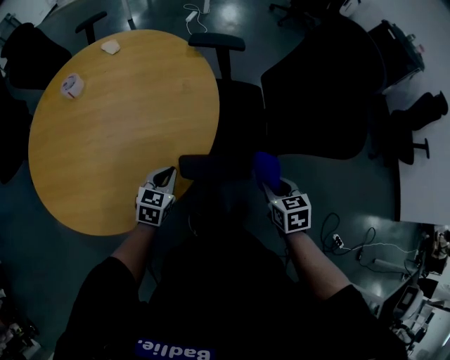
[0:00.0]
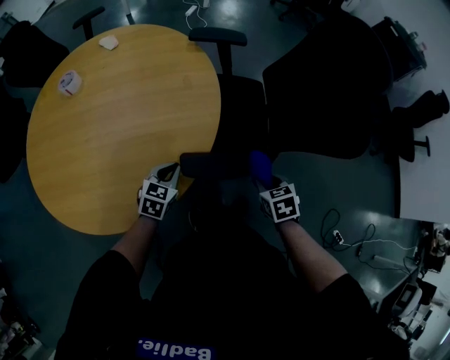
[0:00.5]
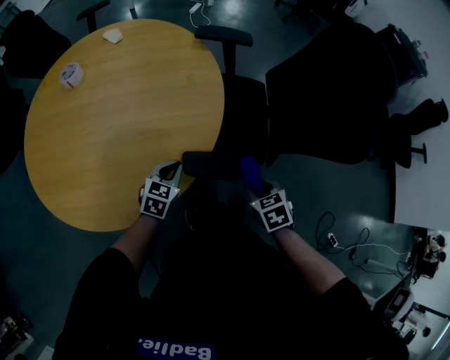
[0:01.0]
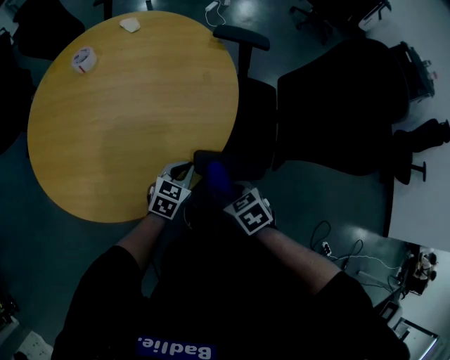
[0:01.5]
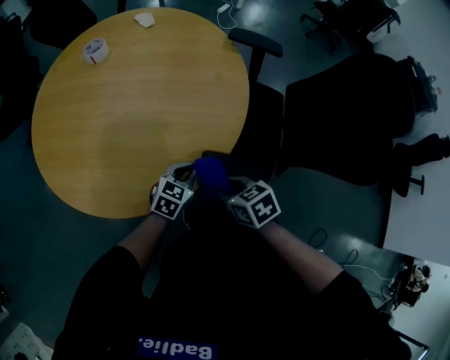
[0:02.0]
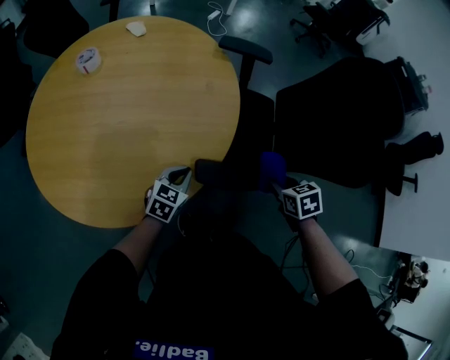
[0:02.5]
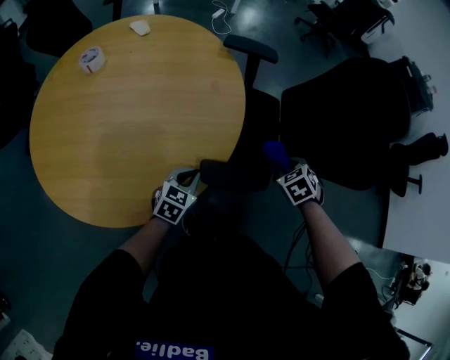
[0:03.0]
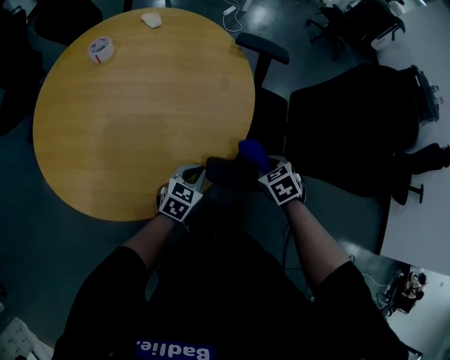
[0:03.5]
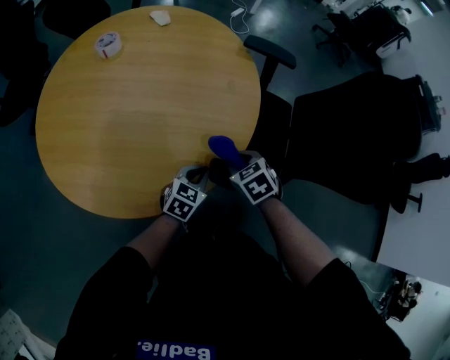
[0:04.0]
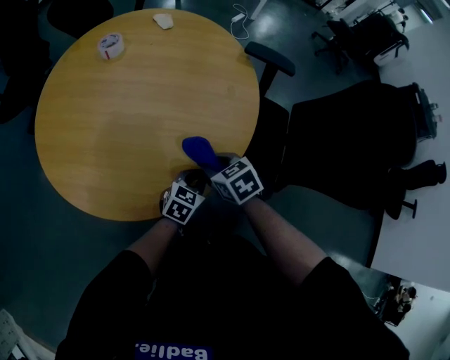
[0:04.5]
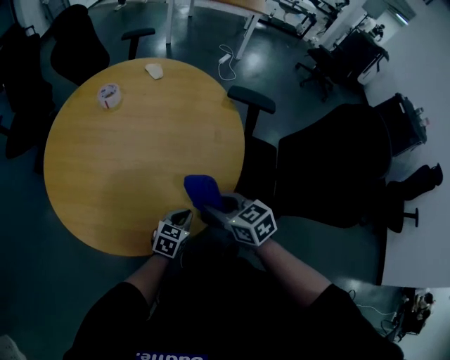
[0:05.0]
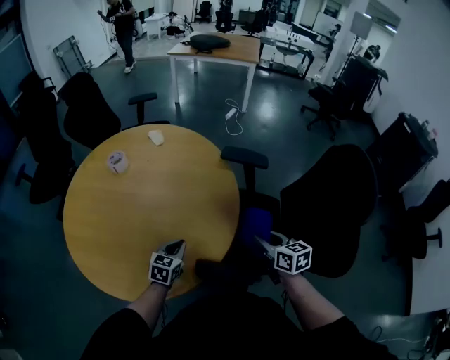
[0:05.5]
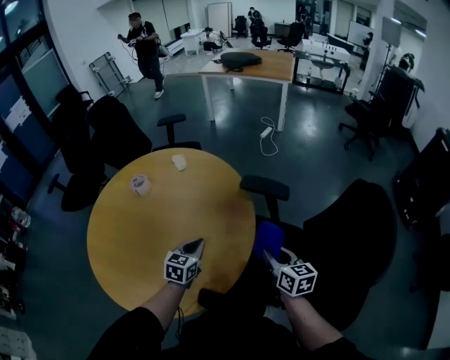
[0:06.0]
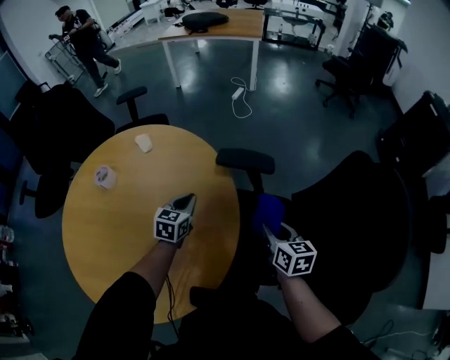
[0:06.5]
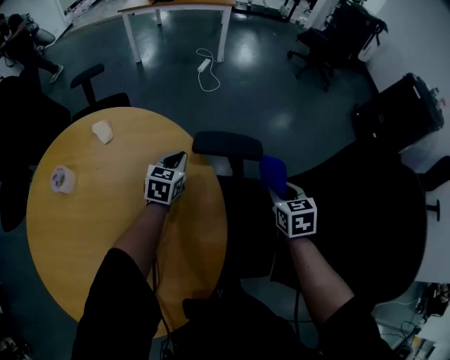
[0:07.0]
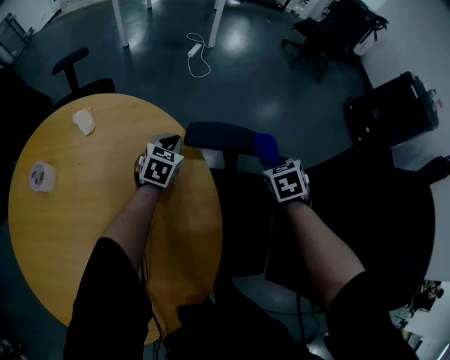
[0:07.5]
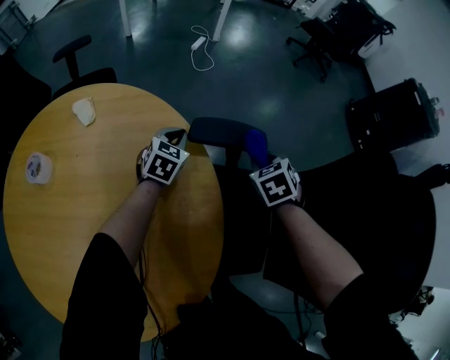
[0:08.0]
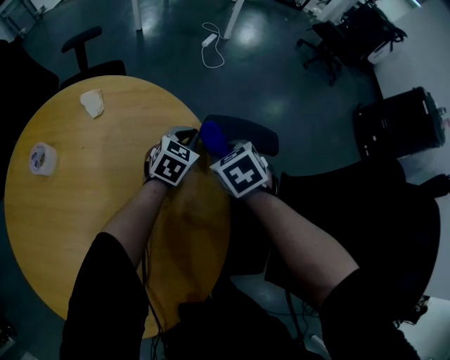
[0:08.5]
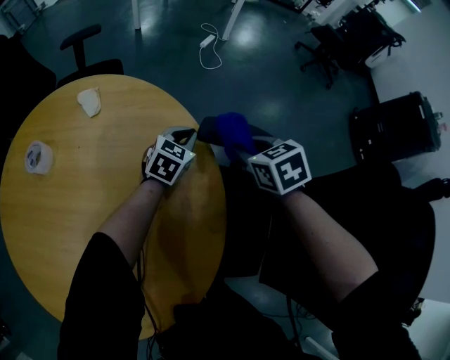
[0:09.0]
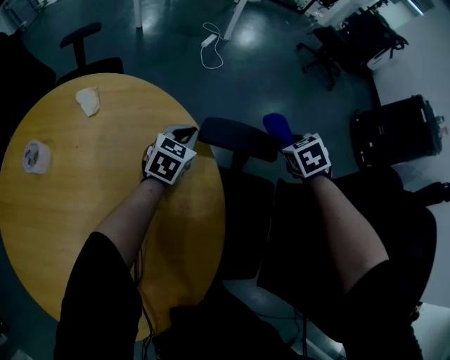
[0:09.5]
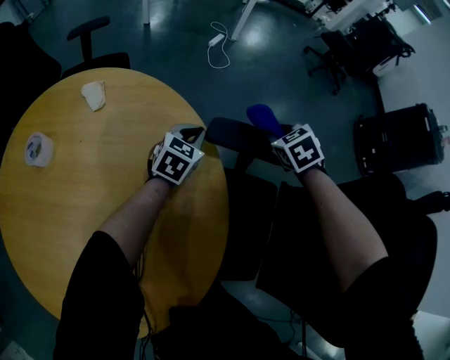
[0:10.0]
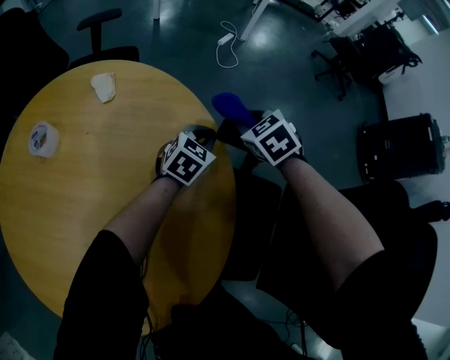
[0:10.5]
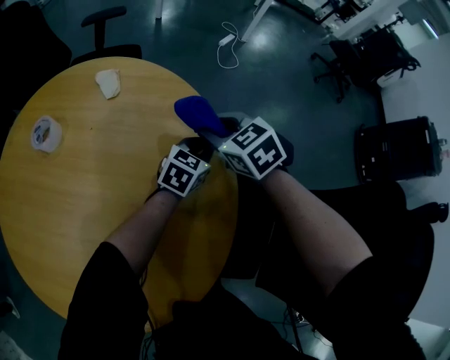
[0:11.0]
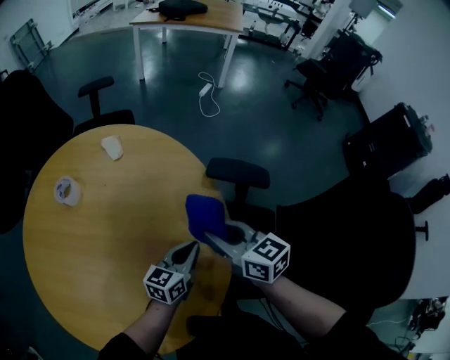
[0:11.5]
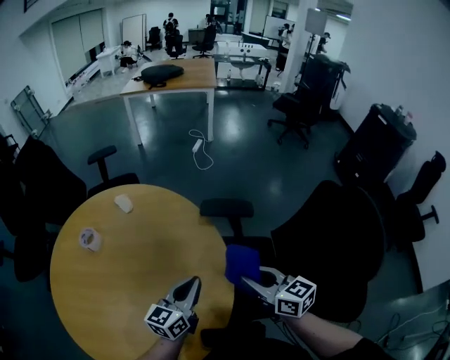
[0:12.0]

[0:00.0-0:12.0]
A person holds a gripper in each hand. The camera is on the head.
0:00.0 to 0:02.0: The right gripper travels to the left by approximately 20 cm, and turns by some 30 degrees.
0:02.0 to 0:04.0: The right gripper turns by about 20 degrees.
0:04.0 to 0:06.0: The right gripper heads to the right, forward and upward, covering about 30 cm, and points its fingers approximately 40 degrees further upward. The left gripper travels forward and upward by approximately 25 cm, and turns by roughly 20 degrees.
0:06.0 to 0:08.0: The right gripper shifts by about 30 cm, and tips its fingers downward by about 40 degrees. The left gripper shifts by some 40 cm, and rotates approximately 20 degrees.
0:08.0 to 0:10.0: The right gripper moves left and right over roughly 20 cm, changing direction 2 times.
0:10.0 to 0:12.0: Both grippers travel together backward and upward, roughly 40 cm. The right gripper tilts its fingers about 40 degrees upward; the left gripper changes its angle by some 30 degrees.

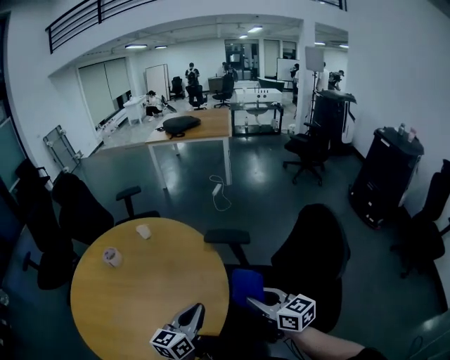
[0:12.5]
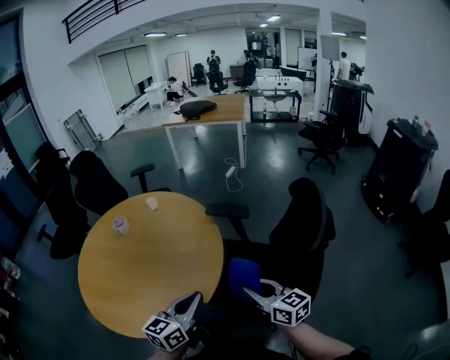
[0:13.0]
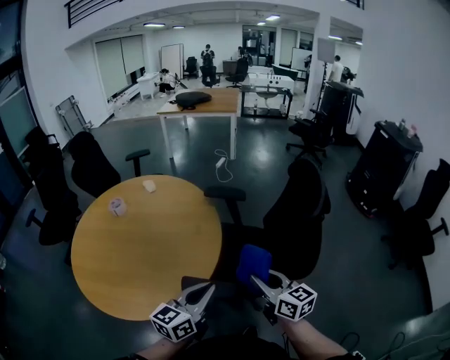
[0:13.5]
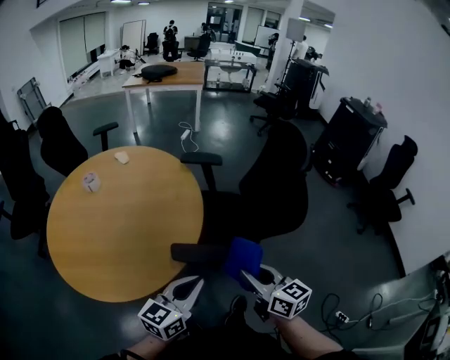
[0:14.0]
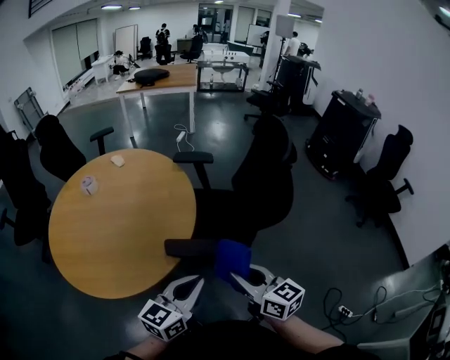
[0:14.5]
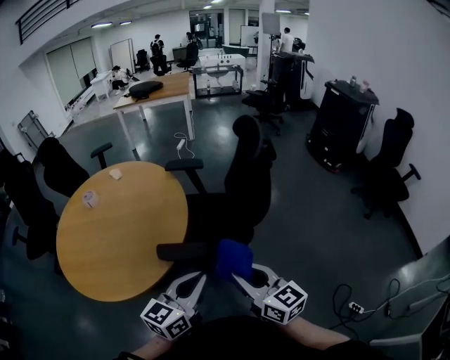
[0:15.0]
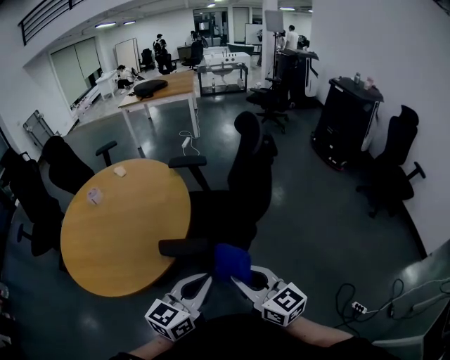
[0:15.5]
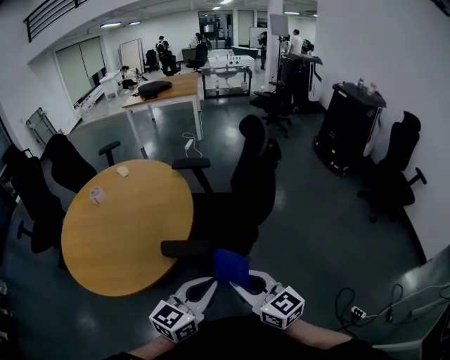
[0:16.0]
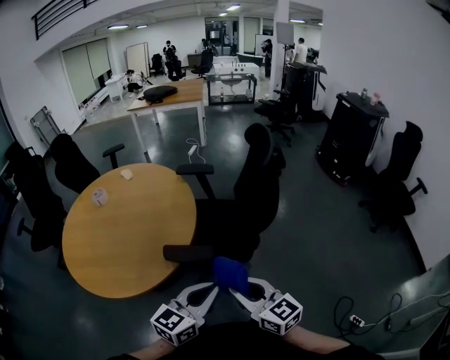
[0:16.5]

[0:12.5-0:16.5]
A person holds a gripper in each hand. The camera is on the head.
0:12.5 to 0:14.5: Both grippers move backward, about 30 cm.
0:14.5 to 0:16.5: The left gripper moves to the right, some 10 cm. The right gripper is displaced to the right by about 5 cm.

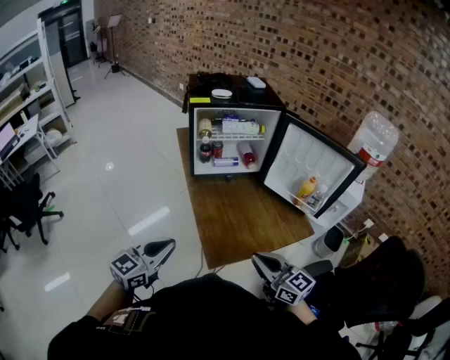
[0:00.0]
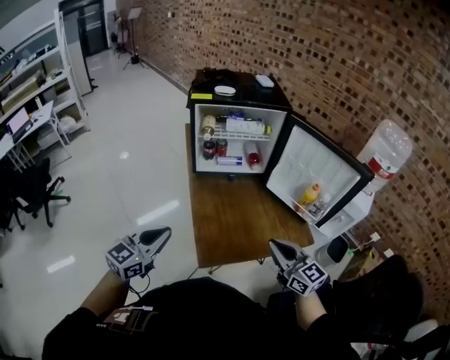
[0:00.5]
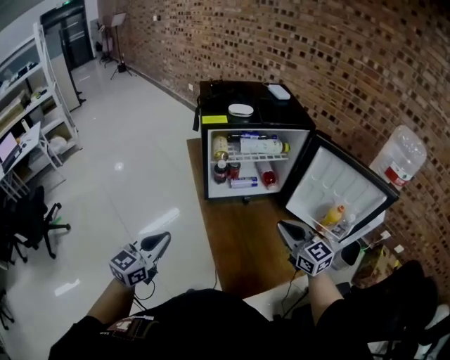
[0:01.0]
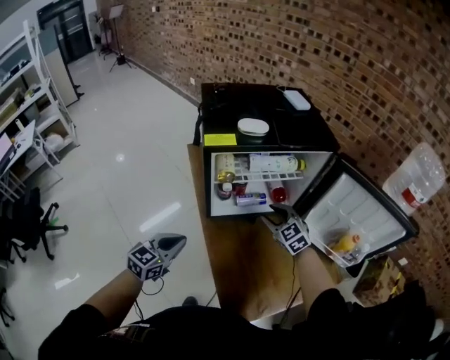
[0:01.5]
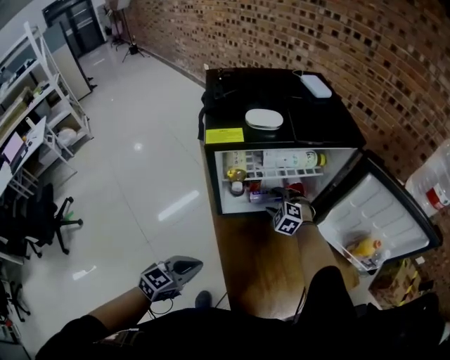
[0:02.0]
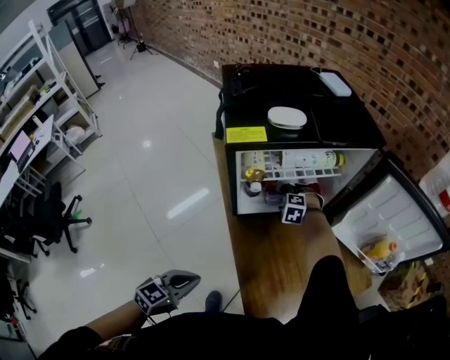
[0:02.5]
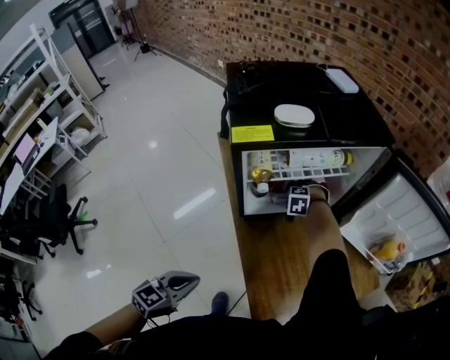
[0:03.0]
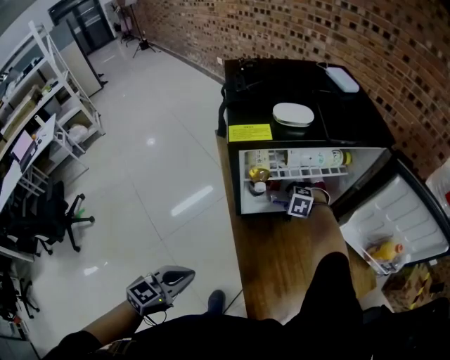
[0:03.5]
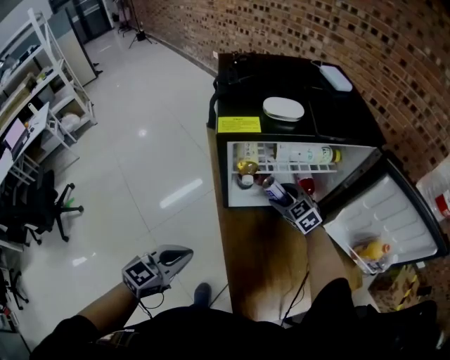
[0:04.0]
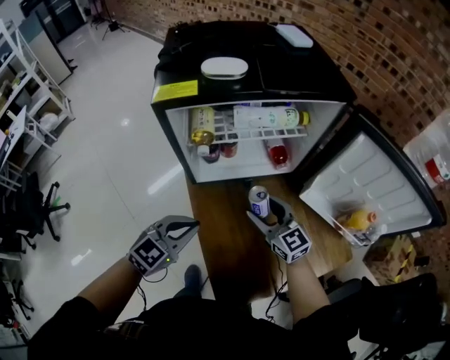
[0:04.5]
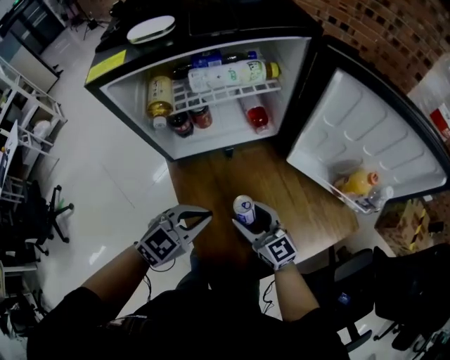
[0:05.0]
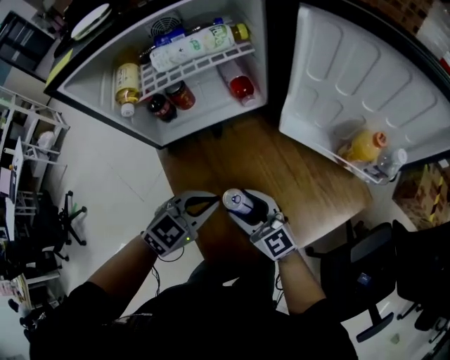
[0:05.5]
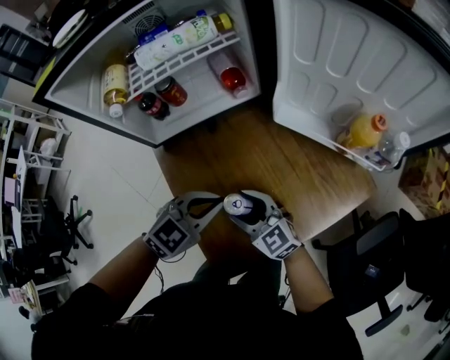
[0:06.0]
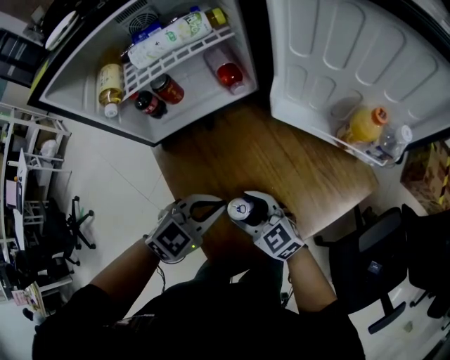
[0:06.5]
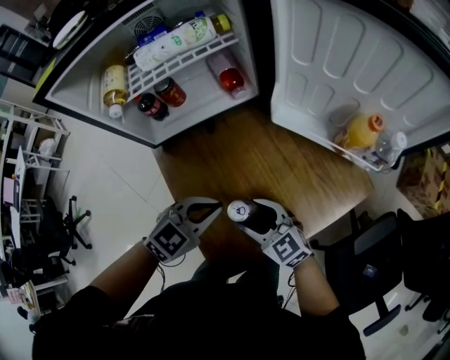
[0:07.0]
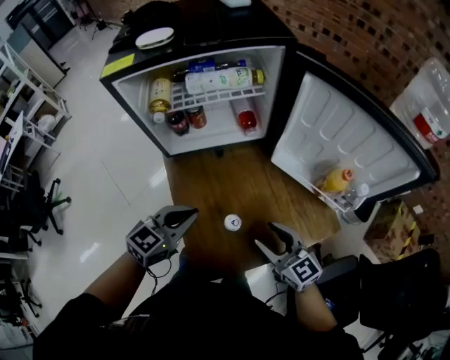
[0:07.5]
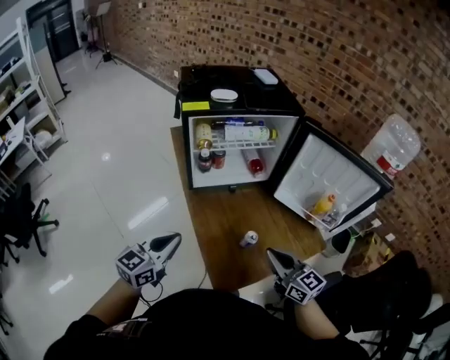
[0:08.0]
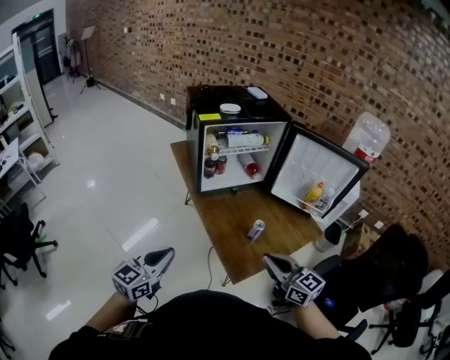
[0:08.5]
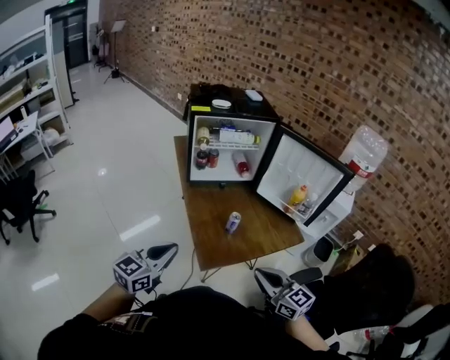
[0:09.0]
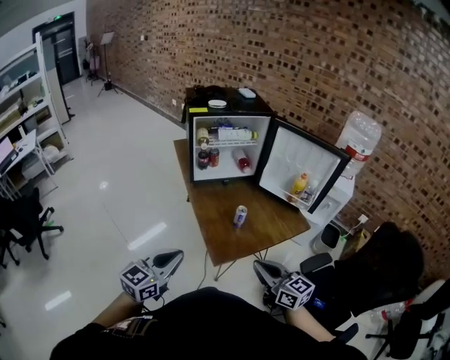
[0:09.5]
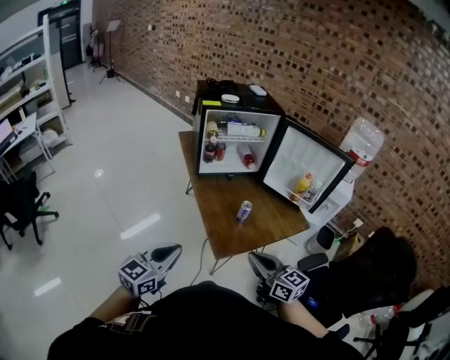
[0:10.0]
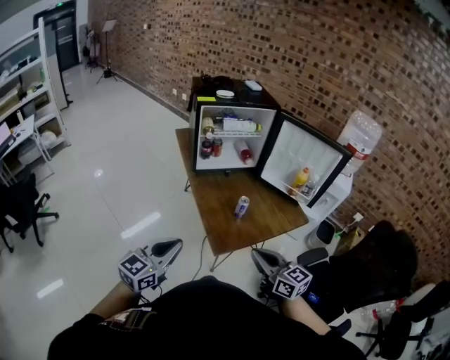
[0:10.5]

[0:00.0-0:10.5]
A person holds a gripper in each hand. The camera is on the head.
0:00.0 to 0:02.0: The right gripper heads forward, covering approximately 60 cm, points its fingers some 50 degrees further downward, and opens up. Meanwhile the left gripper shifts about 35 cm forward and downward, and changes its angle by about 20 degrees.
0:02.0 to 0:04.0: The left gripper ends up about 5 cm from where it was. Meanwhile the right gripper moves approximately 5 cm downward and comes back, and changes its angle by roughly 30 degrees.
0:04.0 to 0:06.5: The left gripper travels to the right and downward by roughly 35 cm, and turns by approximately 40 degrees, while the right gripper shifts some 35 cm backward, to the right and downward, and changes its angle by roughly 30 degrees.
0:06.5 to 0:08.5: The right gripper shifts some 40 cm upward and backward, and closes. The left gripper shifts some 50 cm to the left, upward and backward, and angles its fingers upward, by about 30 degrees.
0:08.5 to 0:10.5: The two grippers go some 20 cm backward and to the right.
